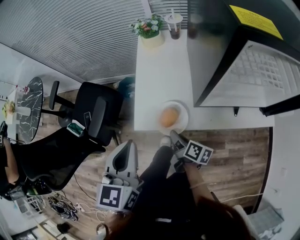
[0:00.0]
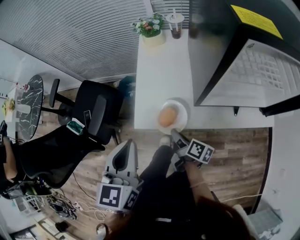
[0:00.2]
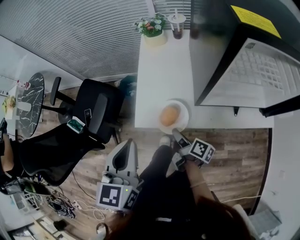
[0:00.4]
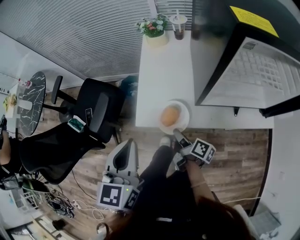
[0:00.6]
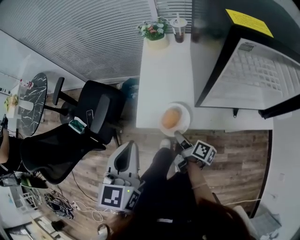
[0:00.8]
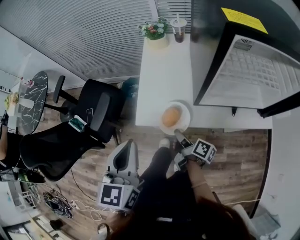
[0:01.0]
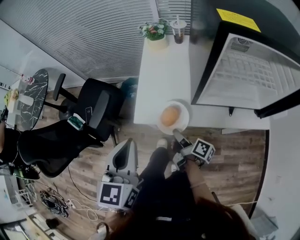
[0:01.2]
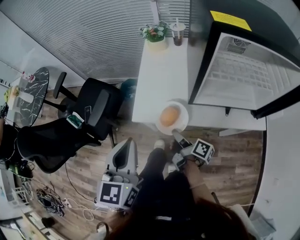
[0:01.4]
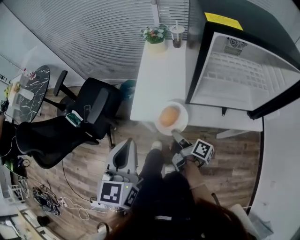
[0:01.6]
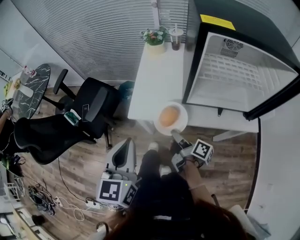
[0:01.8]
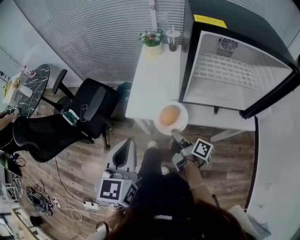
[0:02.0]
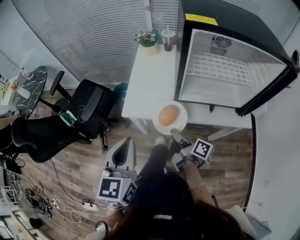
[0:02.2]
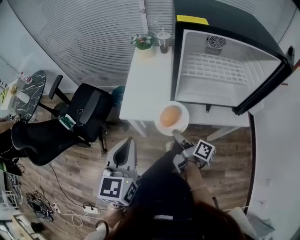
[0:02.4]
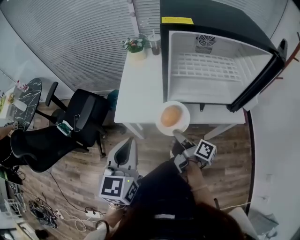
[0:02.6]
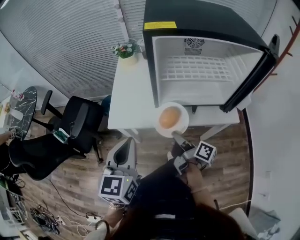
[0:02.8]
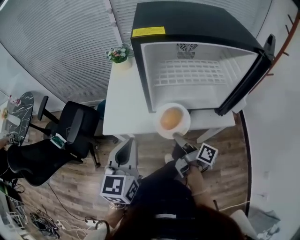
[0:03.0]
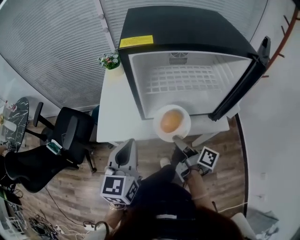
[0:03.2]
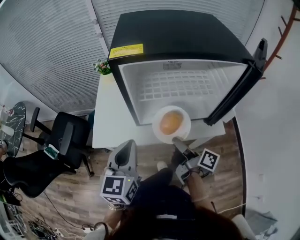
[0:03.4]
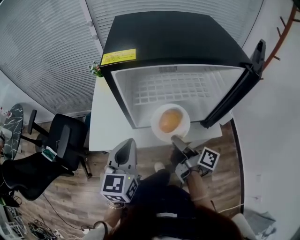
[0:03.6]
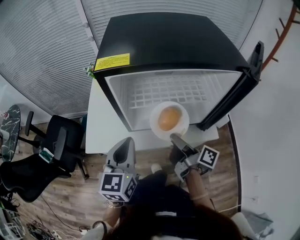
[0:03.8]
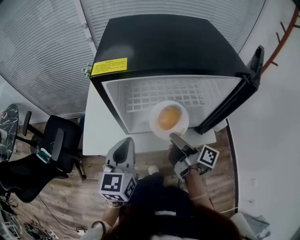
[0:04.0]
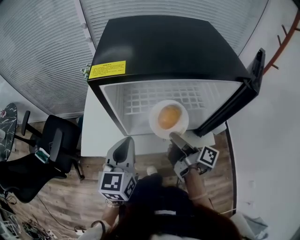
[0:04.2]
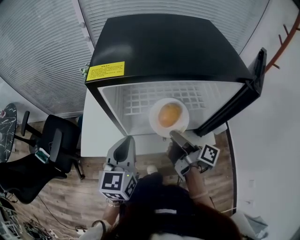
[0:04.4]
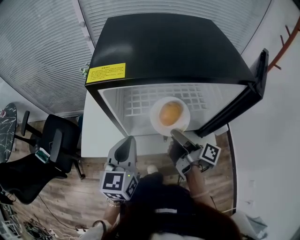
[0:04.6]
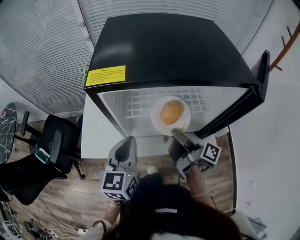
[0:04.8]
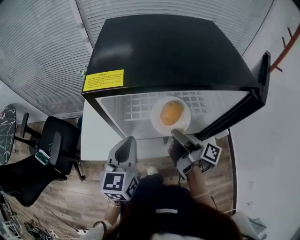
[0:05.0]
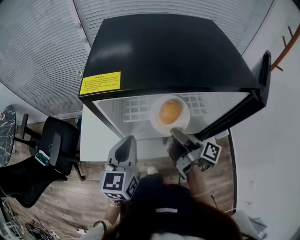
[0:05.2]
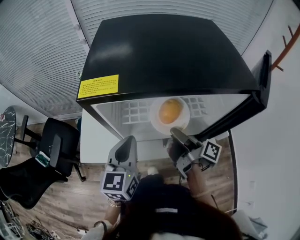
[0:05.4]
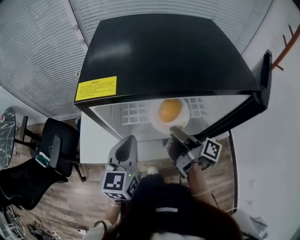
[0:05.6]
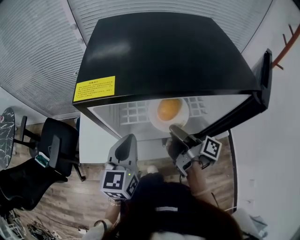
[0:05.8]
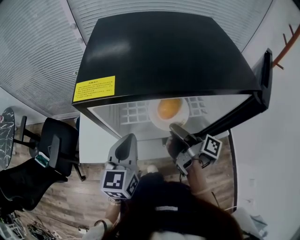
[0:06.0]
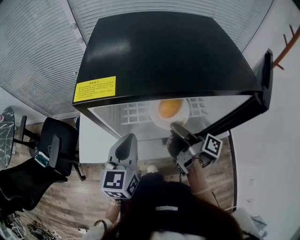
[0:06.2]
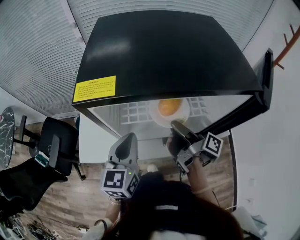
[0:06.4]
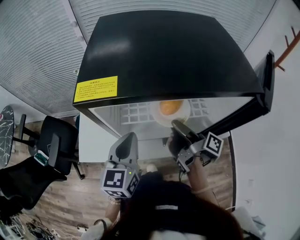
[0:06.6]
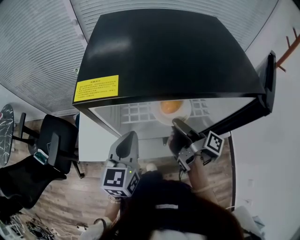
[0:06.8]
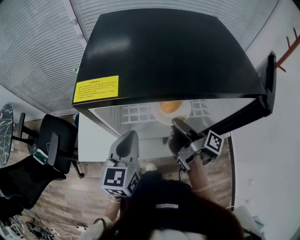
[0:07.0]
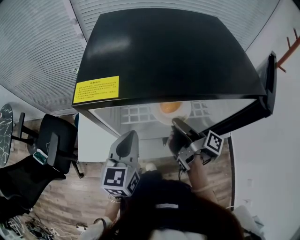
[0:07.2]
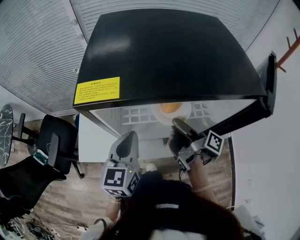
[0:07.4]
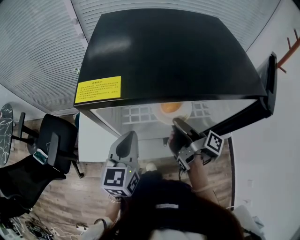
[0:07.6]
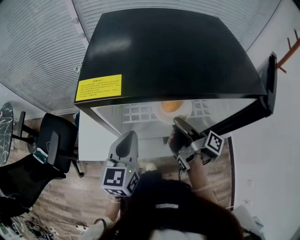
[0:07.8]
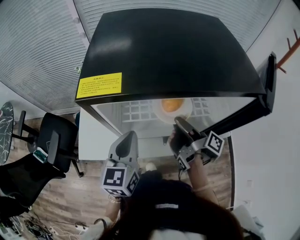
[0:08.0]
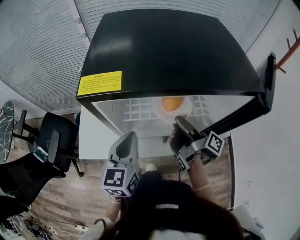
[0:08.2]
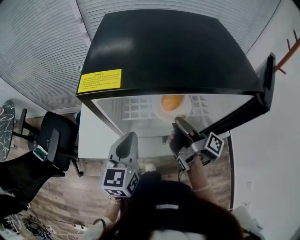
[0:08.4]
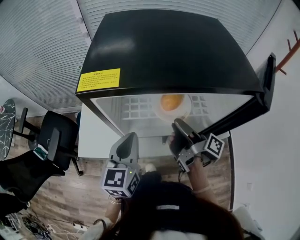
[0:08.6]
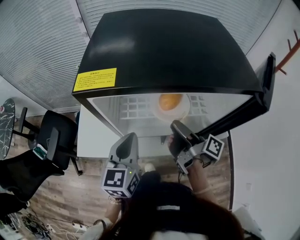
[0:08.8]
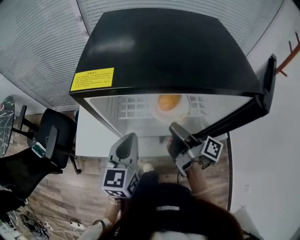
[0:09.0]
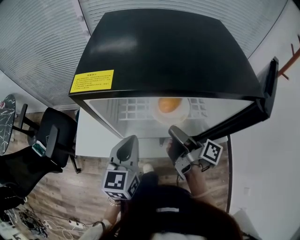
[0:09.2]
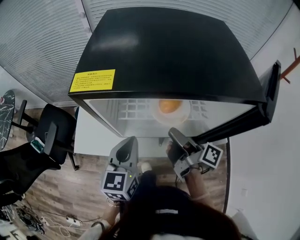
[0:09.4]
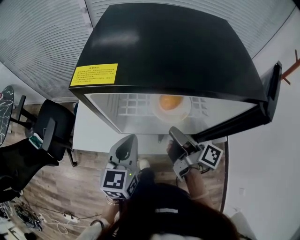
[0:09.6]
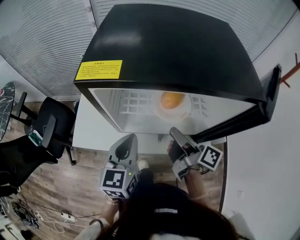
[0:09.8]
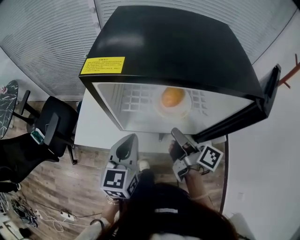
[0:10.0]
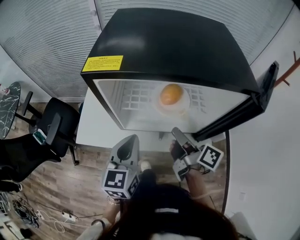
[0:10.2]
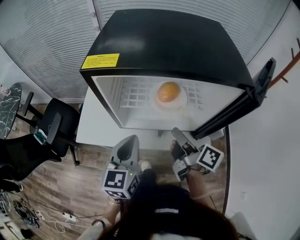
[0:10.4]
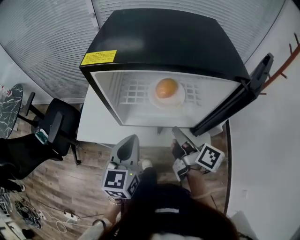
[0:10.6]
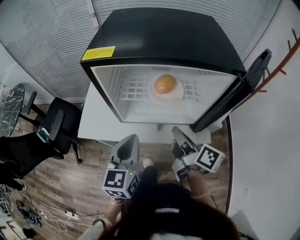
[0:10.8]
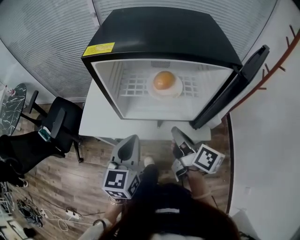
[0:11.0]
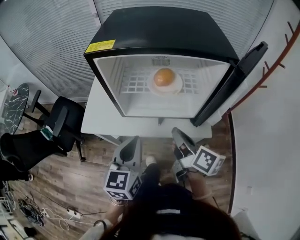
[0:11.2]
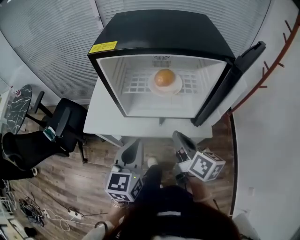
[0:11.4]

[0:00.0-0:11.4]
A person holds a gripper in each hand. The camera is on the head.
0:00.0 to 0:01.4: The left gripper goes roughly 5 cm backward, while the right gripper changes place by approximately 5 cm.
0:01.4 to 0:02.8: The left gripper shifts some 10 cm to the right. The right gripper heads to the right, upward and backward, covering roughly 15 cm.
0:02.8 to 0:04.2: The right gripper travels to the right, forward and upward by some 20 cm. Meanwhile the left gripper heads to the right and forward, covering about 20 cm.
0:04.2 to 0:05.6: The right gripper is displaced forward by some 5 cm. Meanwhile the left gripper shifts by roughly 5 cm.
0:05.6 to 0:08.6: The grippers stay close to where they were, moving slightly.
0:08.6 to 0:10.0: The right gripper turns by approximately 20 degrees.
0:10.0 to 0:11.4: Both grippers travel together backward, about 15 cm. The right gripper swivels about 30 degrees.

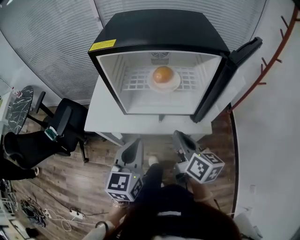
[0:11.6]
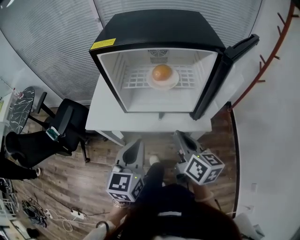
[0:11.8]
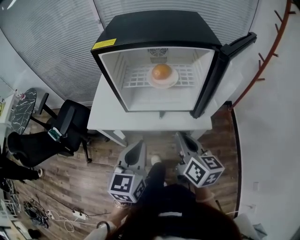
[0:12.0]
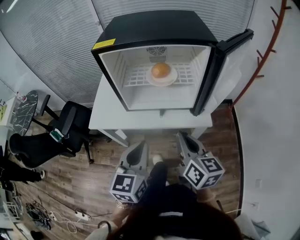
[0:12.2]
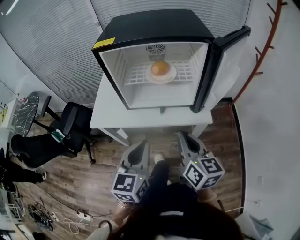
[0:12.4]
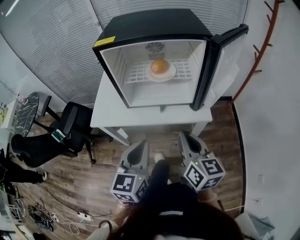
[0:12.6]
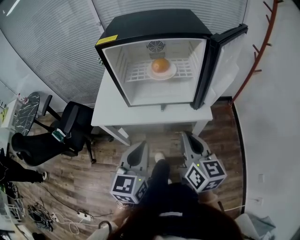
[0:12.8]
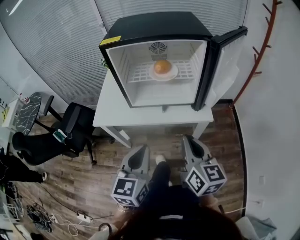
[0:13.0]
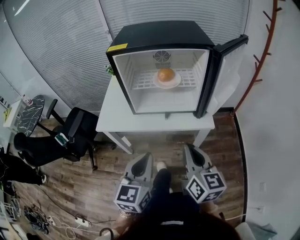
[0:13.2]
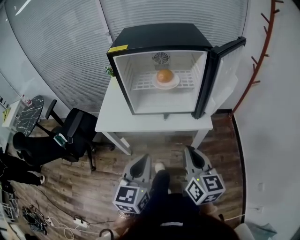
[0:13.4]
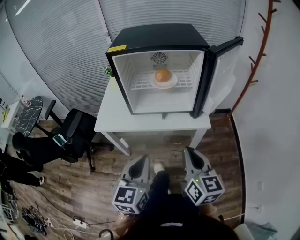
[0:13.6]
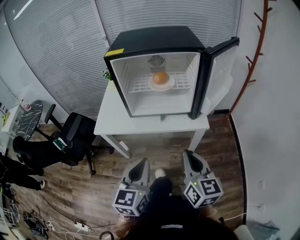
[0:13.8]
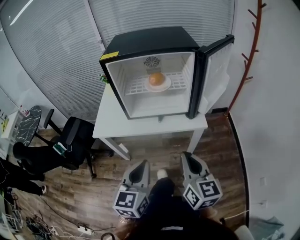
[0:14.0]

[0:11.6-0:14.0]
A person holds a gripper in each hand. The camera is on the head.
0:11.6 to 0:12.8: Both grippers travel together backward, approximately 10 cm. The right gripper changes its angle by some 20 degrees.
0:12.8 to 0:14.0: Both grippers move backward, approximately 5 cm.

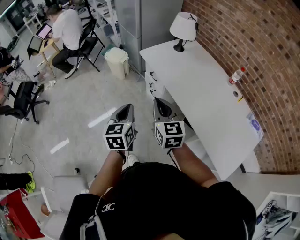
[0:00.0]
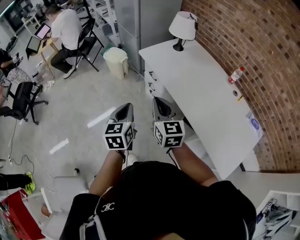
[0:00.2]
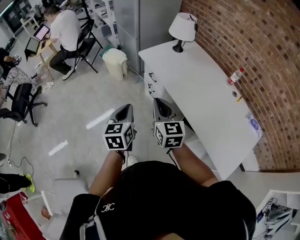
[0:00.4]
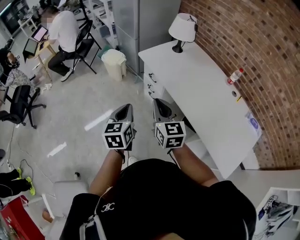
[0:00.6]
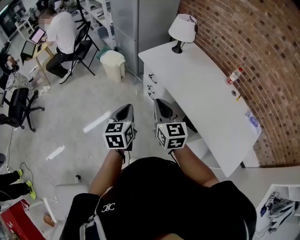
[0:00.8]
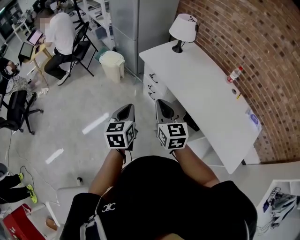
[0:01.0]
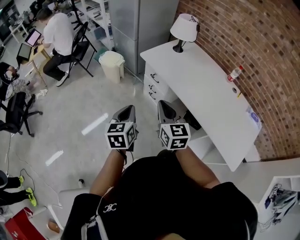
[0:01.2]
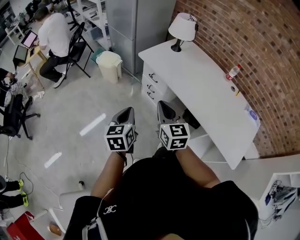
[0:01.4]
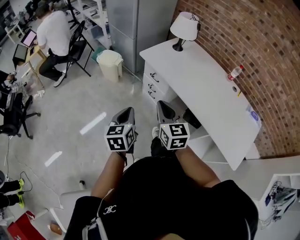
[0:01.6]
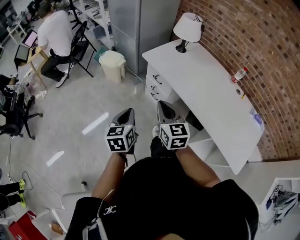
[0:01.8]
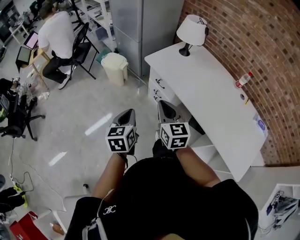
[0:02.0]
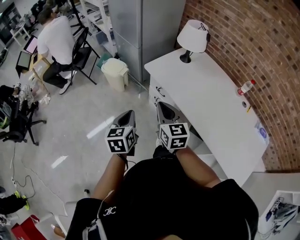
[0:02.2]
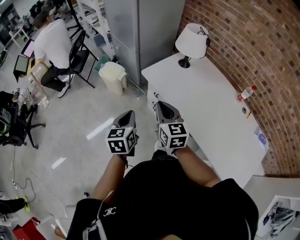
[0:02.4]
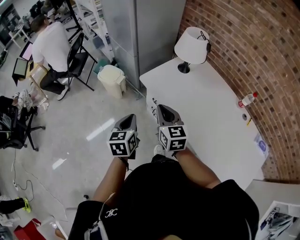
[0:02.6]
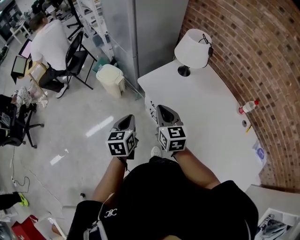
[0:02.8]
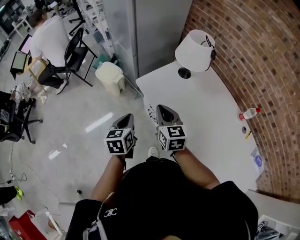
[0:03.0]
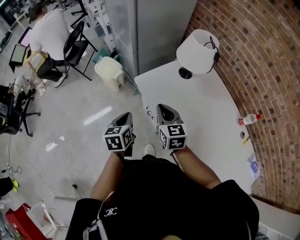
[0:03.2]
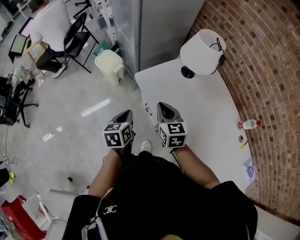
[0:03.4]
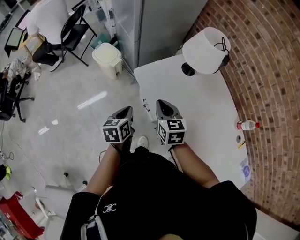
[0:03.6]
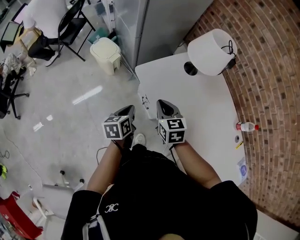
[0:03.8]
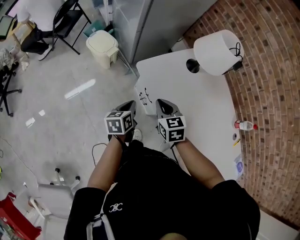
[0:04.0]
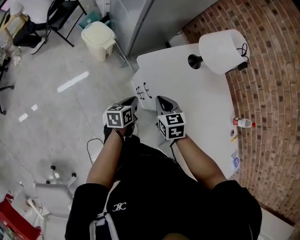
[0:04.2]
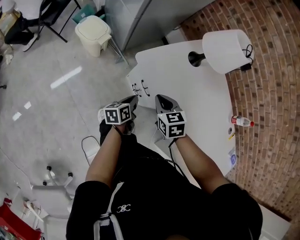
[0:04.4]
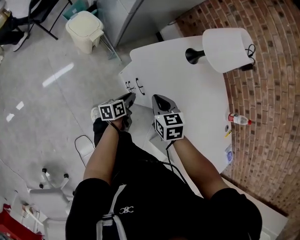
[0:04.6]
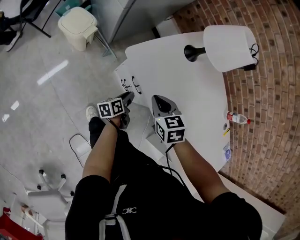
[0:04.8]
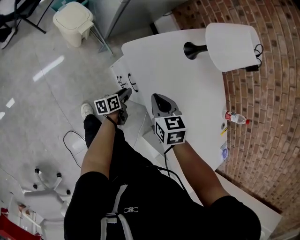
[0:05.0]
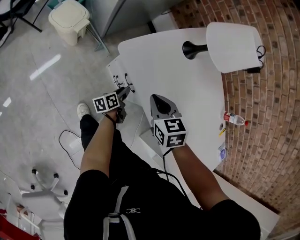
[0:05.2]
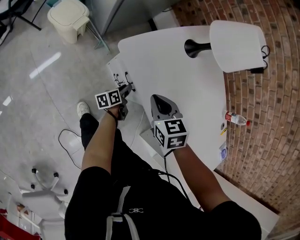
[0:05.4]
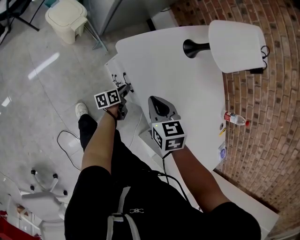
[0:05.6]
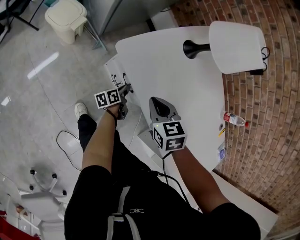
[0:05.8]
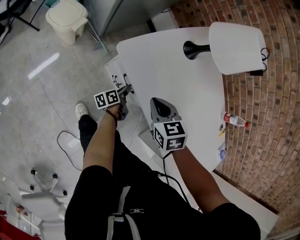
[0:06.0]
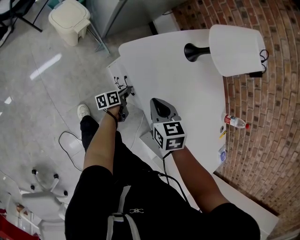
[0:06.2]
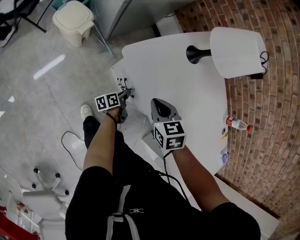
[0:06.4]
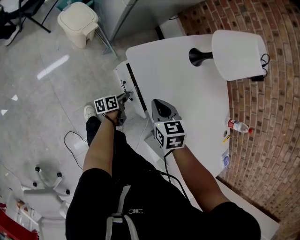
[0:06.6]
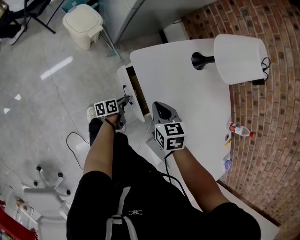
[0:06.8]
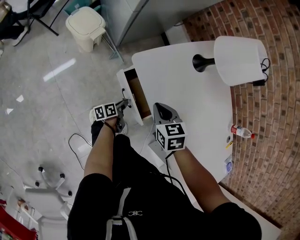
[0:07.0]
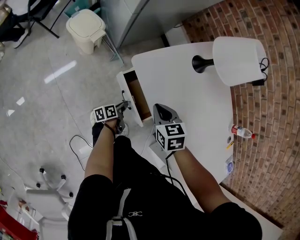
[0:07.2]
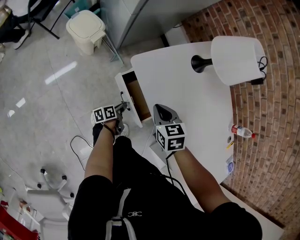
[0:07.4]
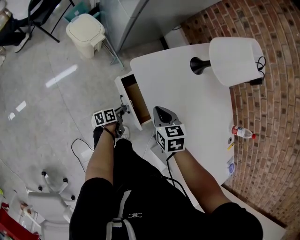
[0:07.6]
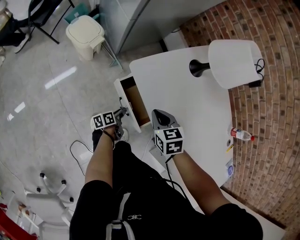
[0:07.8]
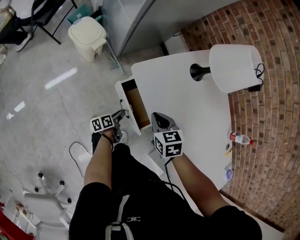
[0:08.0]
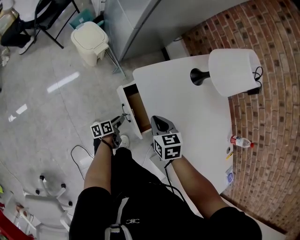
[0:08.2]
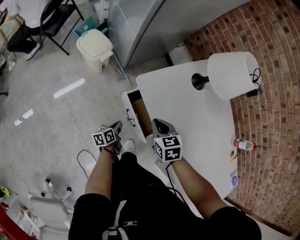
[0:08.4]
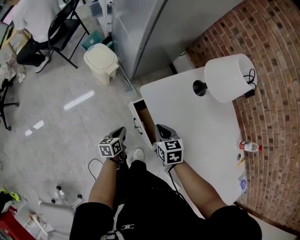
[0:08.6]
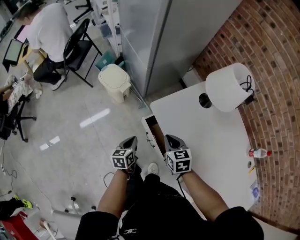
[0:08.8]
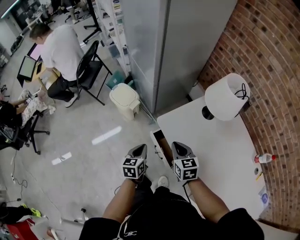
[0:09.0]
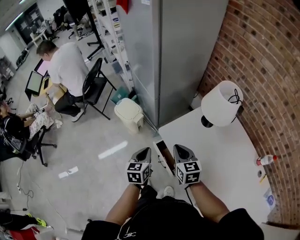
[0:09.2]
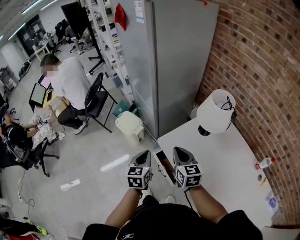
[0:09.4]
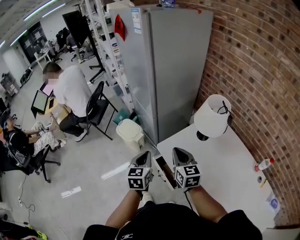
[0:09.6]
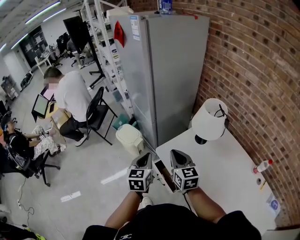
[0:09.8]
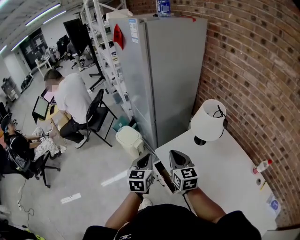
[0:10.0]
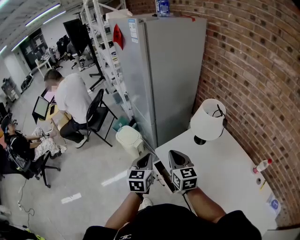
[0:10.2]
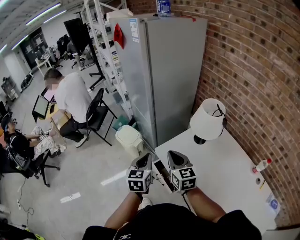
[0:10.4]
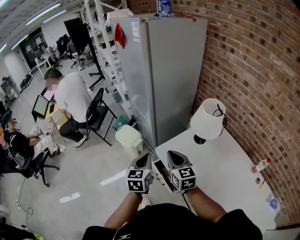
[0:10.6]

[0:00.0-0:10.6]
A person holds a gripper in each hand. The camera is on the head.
0:00.0 to 0:01.6: The two grippers go some 10 cm to the left.
0:01.6 to 0:03.0: The grippers both shift forward by about 30 cm.
0:03.0 to 0:04.6: The left gripper is displaced downward by some 30 cm, and swivels about 50 degrees; the right gripper shifts about 15 cm downward, and angles its fingers downward, by about 30 degrees.
0:04.6 to 0:06.0: The left gripper travels downward, to the right and forward by roughly 15 cm; the right gripper ends up some 5 cm from where it was.
0:06.0 to 0:07.6: The left gripper heads to the left and backward, covering approximately 10 cm.
0:07.6 to 0:09.0: The left gripper moves upward, approximately 30 cm, twists about 50 degrees clockwise, seen from behind, and opens, then closes again. The right gripper travels upward by roughly 10 cm.
0:09.0 to 0:10.6: Both grippers travel together upward, approximately 20 cm. The right gripper turns by approximately 20 degrees.
